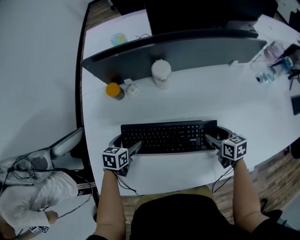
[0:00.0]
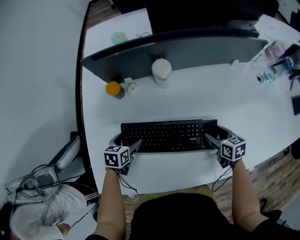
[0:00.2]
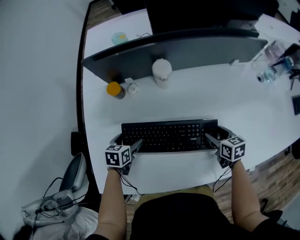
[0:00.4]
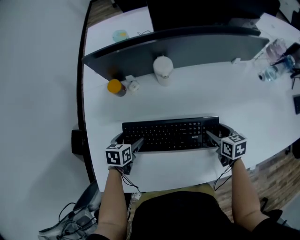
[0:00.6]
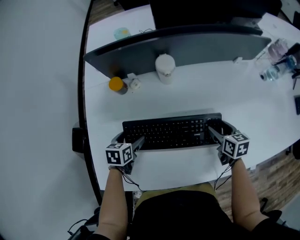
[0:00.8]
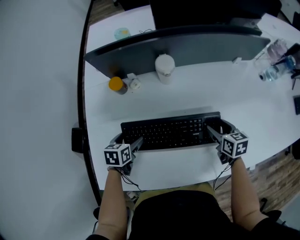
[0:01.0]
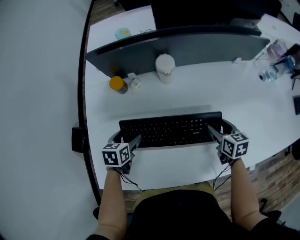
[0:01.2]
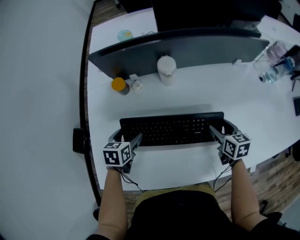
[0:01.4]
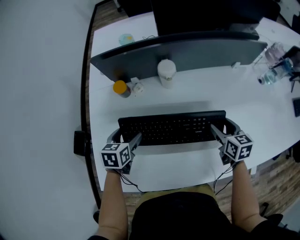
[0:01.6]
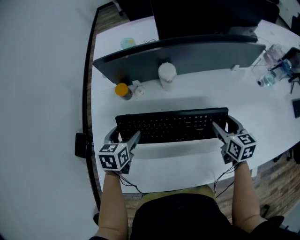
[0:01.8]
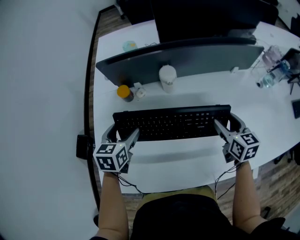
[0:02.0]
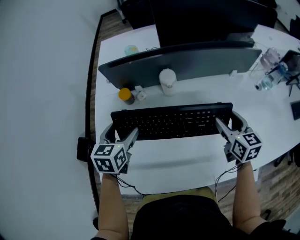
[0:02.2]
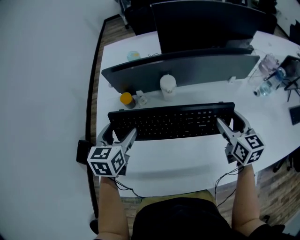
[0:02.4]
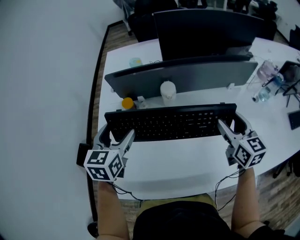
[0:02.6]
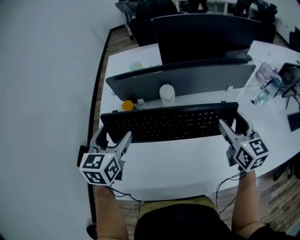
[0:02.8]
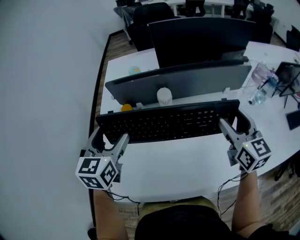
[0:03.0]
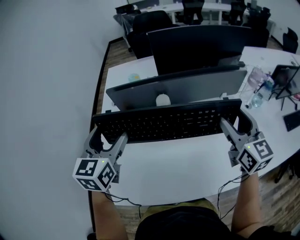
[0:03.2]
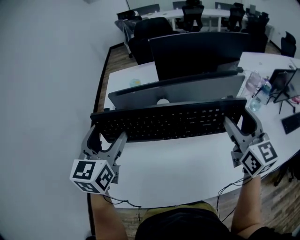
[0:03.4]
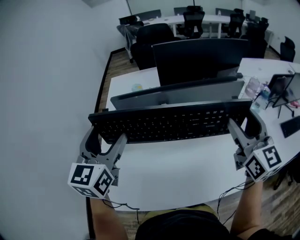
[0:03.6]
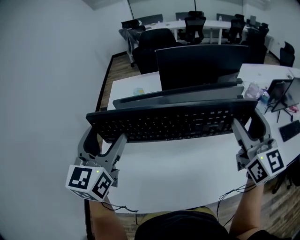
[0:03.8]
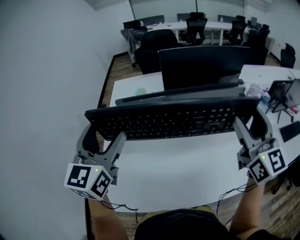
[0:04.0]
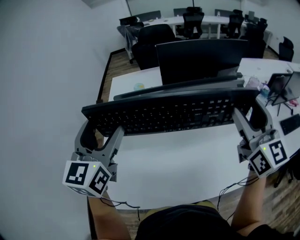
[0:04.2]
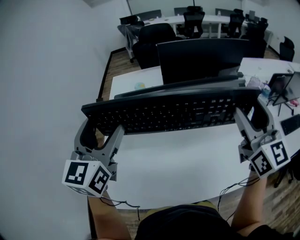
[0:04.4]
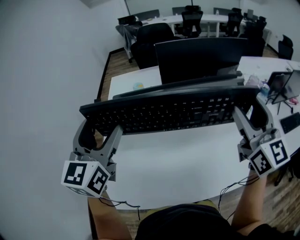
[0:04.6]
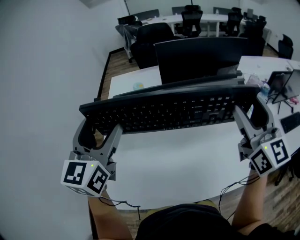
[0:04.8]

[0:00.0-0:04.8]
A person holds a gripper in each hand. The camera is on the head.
0:00.0 to 0:01.6: Both grippers move upward, some 10 cm.
0:01.6 to 0:03.2: The grippers both shift upward by roughly 30 cm. The left gripper angles its fingers upward, by some 30 degrees. The right gripper tips its fingers upward by about 30 degrees.
0:03.2 to 0:04.8: The right gripper goes roughly 15 cm upward and backward, while the left gripper heads upward, covering some 10 cm.

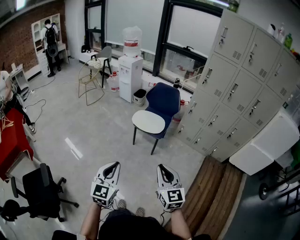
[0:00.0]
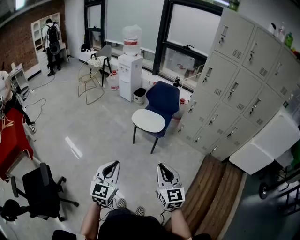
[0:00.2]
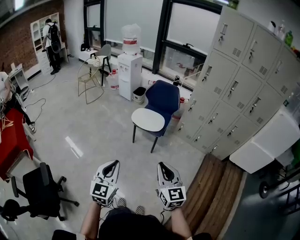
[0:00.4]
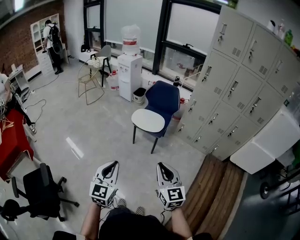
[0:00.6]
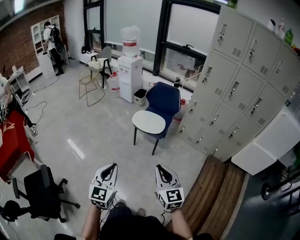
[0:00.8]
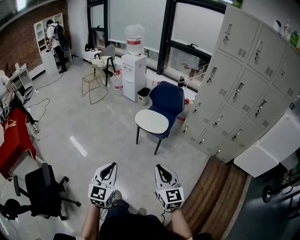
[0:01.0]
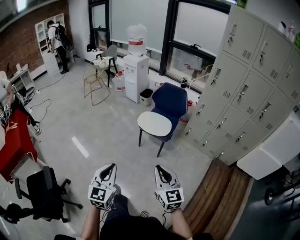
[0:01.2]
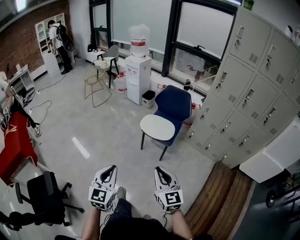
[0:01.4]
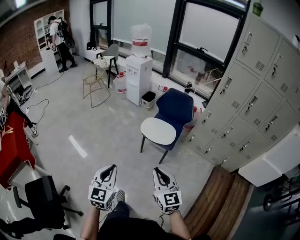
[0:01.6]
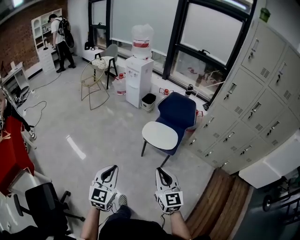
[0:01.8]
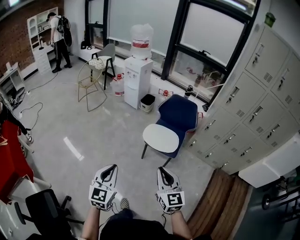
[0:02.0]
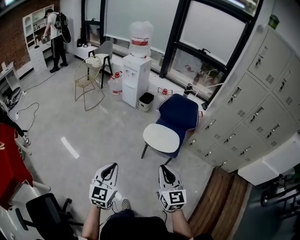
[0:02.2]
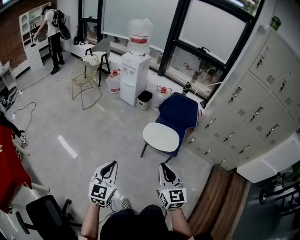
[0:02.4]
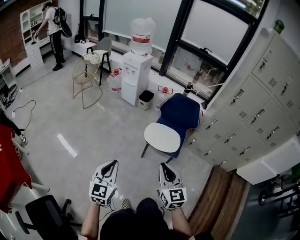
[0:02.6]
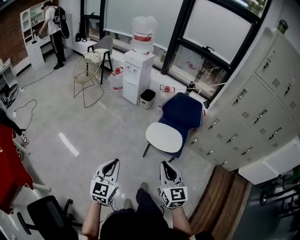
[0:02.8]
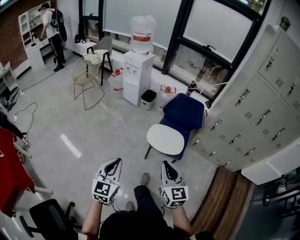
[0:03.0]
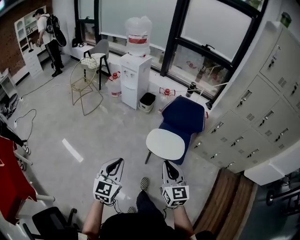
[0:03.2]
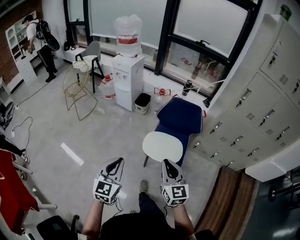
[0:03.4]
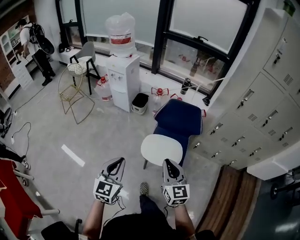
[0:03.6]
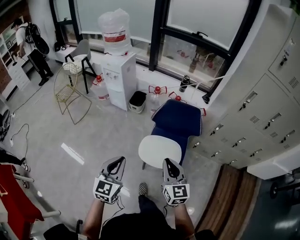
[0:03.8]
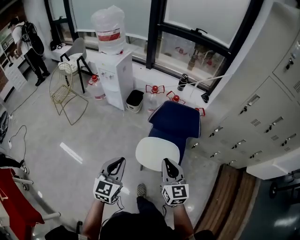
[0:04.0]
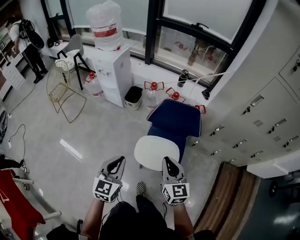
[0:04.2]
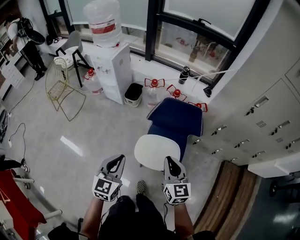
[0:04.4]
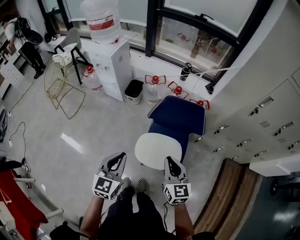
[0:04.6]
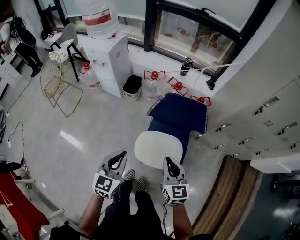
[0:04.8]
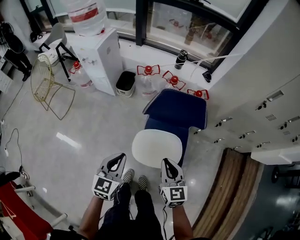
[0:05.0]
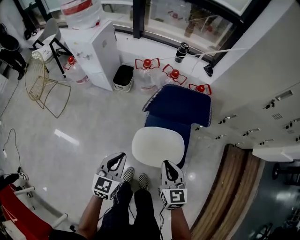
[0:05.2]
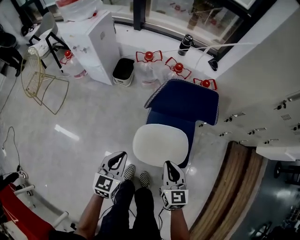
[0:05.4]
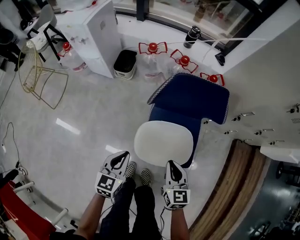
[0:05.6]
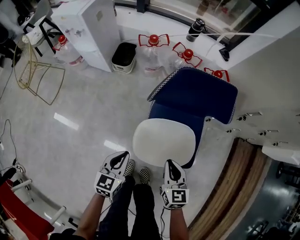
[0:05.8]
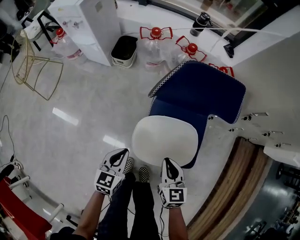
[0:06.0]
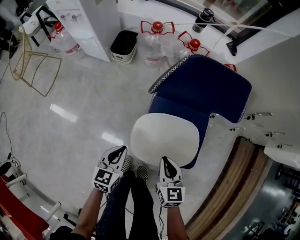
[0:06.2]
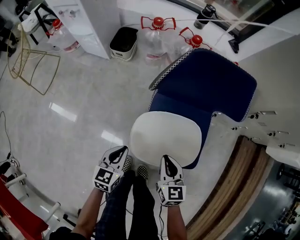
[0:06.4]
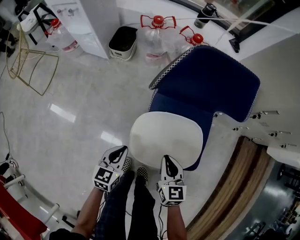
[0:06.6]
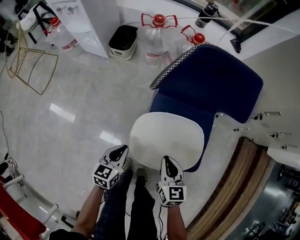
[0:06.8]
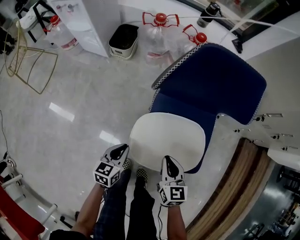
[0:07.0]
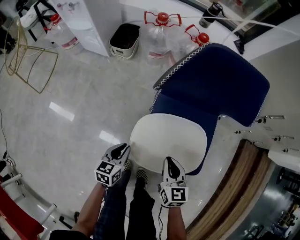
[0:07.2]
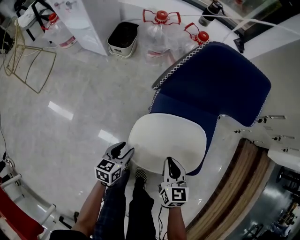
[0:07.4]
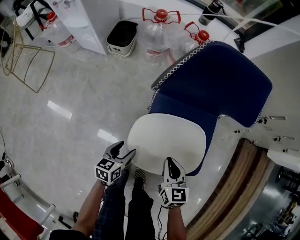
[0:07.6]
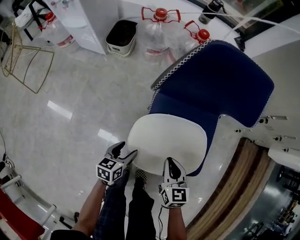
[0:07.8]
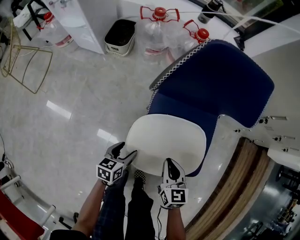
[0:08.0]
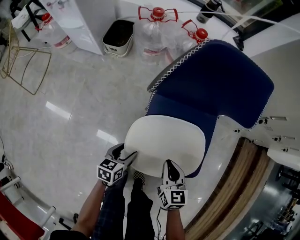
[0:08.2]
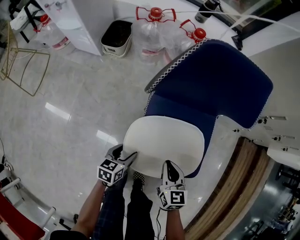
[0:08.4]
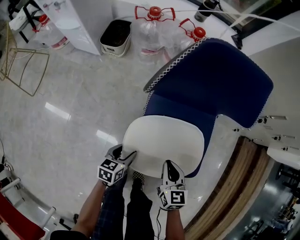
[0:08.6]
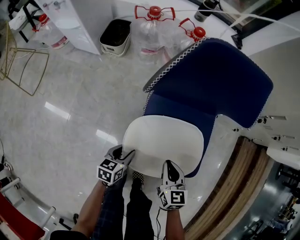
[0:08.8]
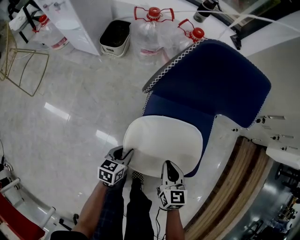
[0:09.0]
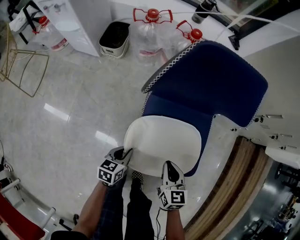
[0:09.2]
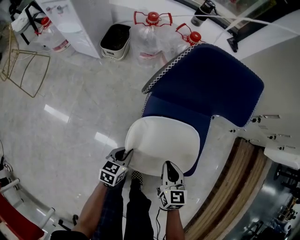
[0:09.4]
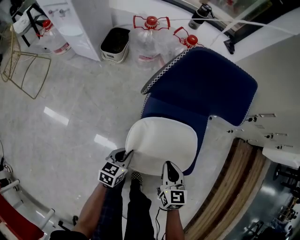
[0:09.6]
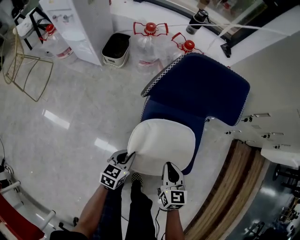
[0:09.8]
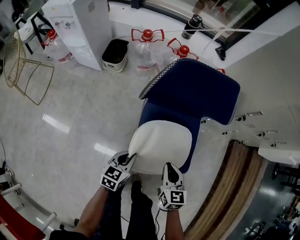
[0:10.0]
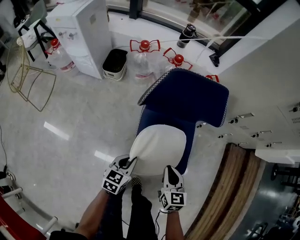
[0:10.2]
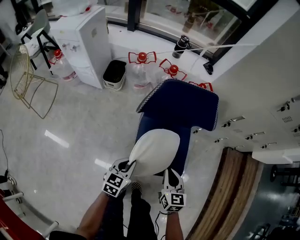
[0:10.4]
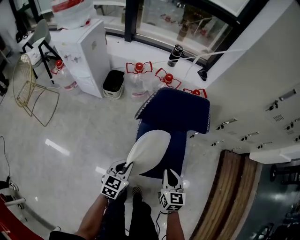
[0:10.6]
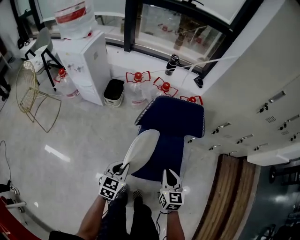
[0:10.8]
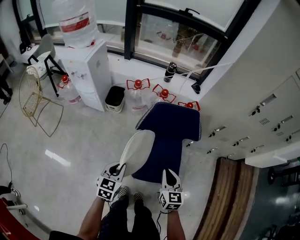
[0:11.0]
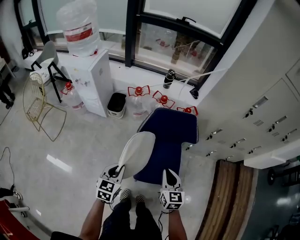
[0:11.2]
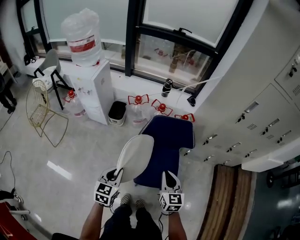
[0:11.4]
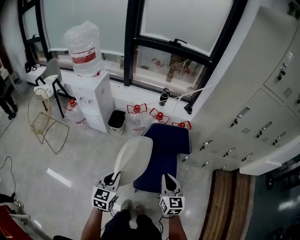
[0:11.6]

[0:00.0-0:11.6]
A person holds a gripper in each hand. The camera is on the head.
0:00.0 to 0:01.4: The two grippers go approximately 10 cm forward.
0:01.4 to 0:02.8: Both grippers travel together forward and to the left, approximately 35 cm.
0:02.8 to 0:04.4: The two grippers travel together, forward, roughly 50 cm.
0:04.4 to 0:05.8: Both grippers move downward, approximately 35 cm. The left gripper swivels roughly 20 degrees. The right gripper turns by approximately 20 degrees.
0:05.8 to 0:07.2: Both grippers travel together downward, approximately 20 cm.
0:07.2 to 0:08.8: The left gripper ends up approximately 5 cm from where it was, and opens up.
0:08.8 to 0:10.2: The two grippers go some 15 cm upward. The left gripper closes up.
0:10.2 to 0:11.6: The grippers both shift upward by approximately 40 cm. The left gripper swivels some 20 degrees.

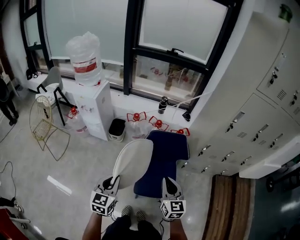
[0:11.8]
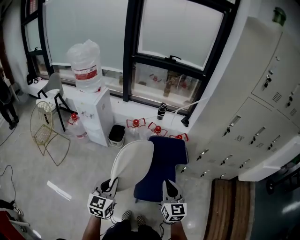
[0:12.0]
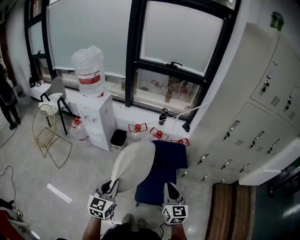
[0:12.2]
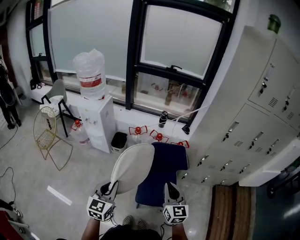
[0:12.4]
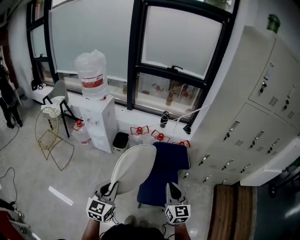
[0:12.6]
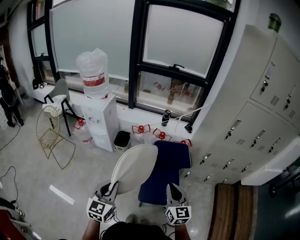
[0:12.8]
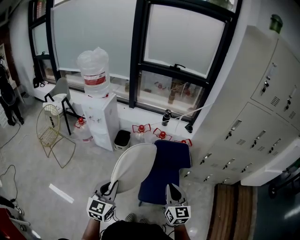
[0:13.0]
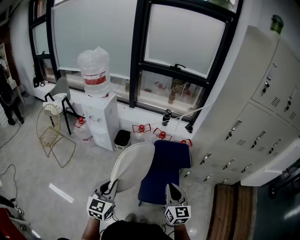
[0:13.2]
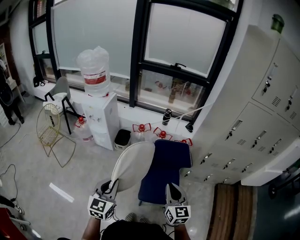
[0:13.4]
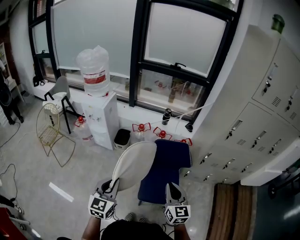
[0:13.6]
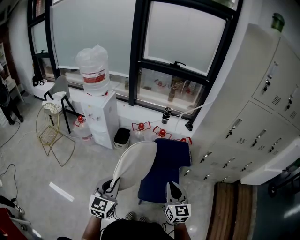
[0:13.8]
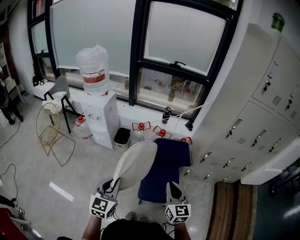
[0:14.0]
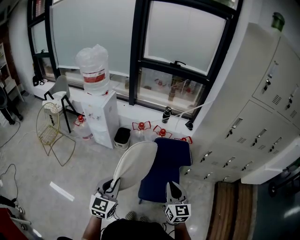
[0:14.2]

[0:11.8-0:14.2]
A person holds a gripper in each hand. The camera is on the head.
0:11.8 to 0:13.0: The left gripper heads upward and backward, covering about 10 cm; the right gripper moves upward, about 5 cm.
0:13.0 to 0:14.2: There are only small adjustments of the grippers.

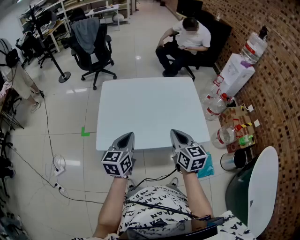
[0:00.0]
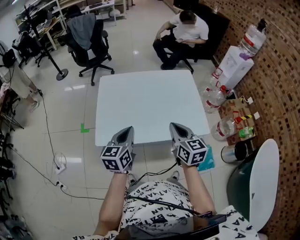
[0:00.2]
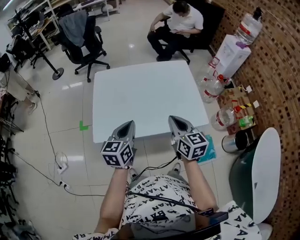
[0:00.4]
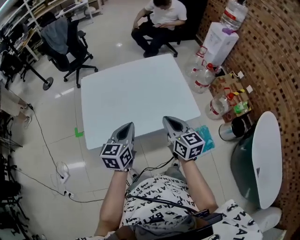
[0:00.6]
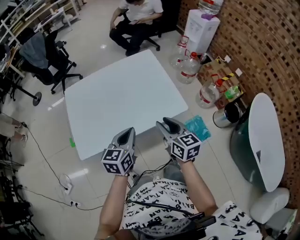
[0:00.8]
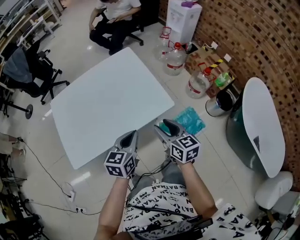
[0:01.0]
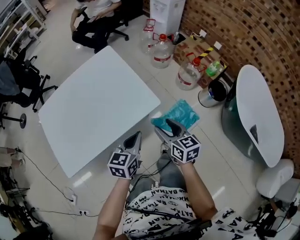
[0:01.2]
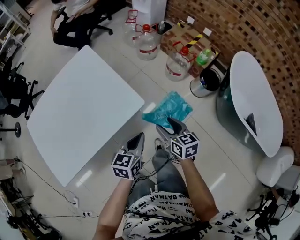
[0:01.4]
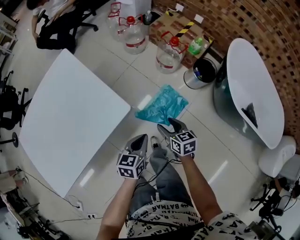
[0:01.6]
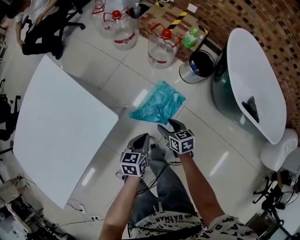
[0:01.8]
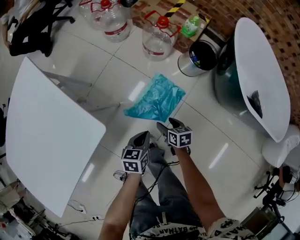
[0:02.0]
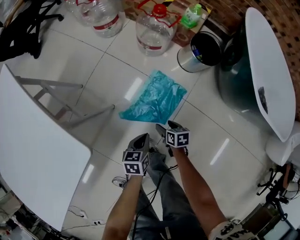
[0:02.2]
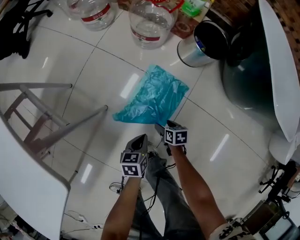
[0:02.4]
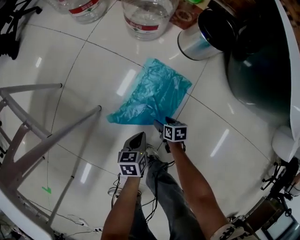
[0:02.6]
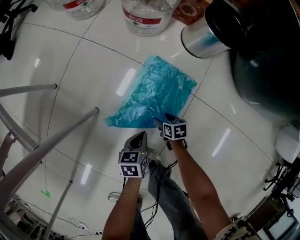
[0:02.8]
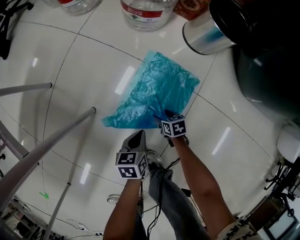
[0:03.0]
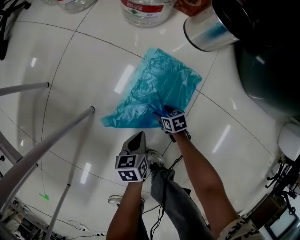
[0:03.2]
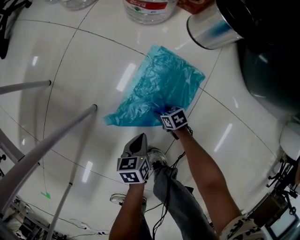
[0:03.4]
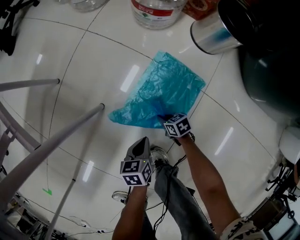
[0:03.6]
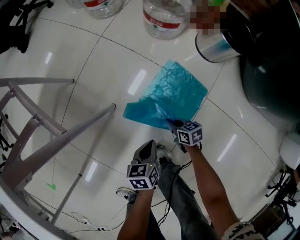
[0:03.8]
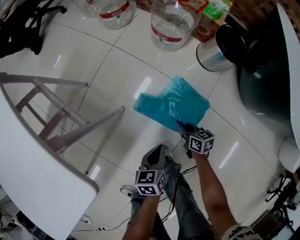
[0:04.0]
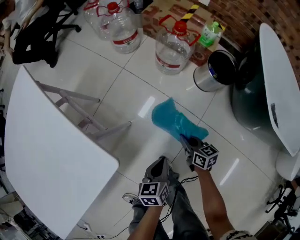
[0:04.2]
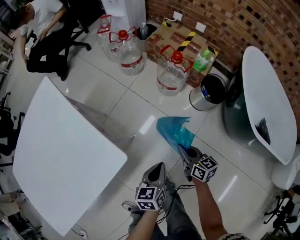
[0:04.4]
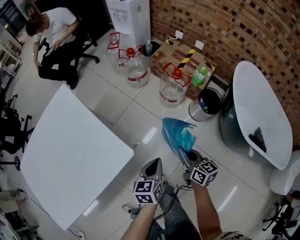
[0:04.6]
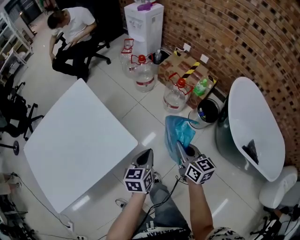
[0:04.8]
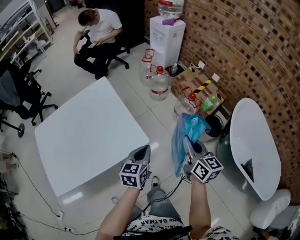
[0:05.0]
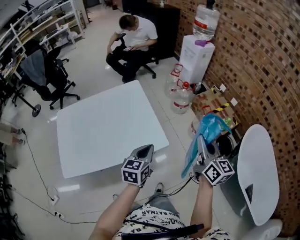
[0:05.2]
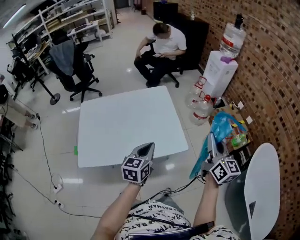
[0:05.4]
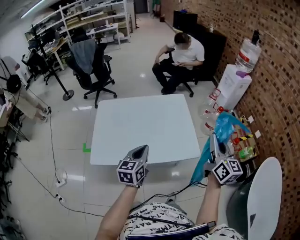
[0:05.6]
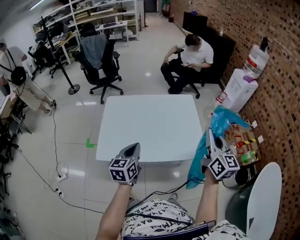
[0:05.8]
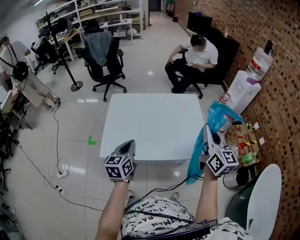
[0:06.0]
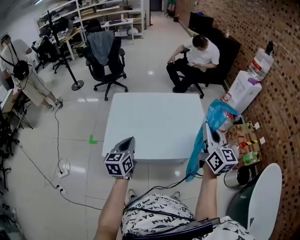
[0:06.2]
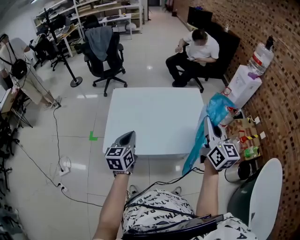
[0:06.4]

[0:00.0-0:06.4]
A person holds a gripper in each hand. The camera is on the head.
0:00.0 to 0:01.6: The left gripper shifts by some 50 cm, and rotates about 50 degrees. Meanwhile the right gripper ends up approximately 50 cm from where it was, turns by about 40 degrees, and opens its fingers.
0:01.6 to 0:03.2: Both grippers move downward, roughly 60 cm. The right gripper swivels approximately 30 degrees.
0:03.2 to 0:04.8: The grippers both shift upward by approximately 70 cm. The right gripper angles its fingers upward, by roughly 40 degrees, and closes. The left gripper turns by roughly 30 degrees.
0:04.8 to 0:06.4: The right gripper ends up some 50 cm from where it was, and changes its angle by roughly 40 degrees. Meanwhile the left gripper shifts by about 60 cm, and rotates approximately 50 degrees.
